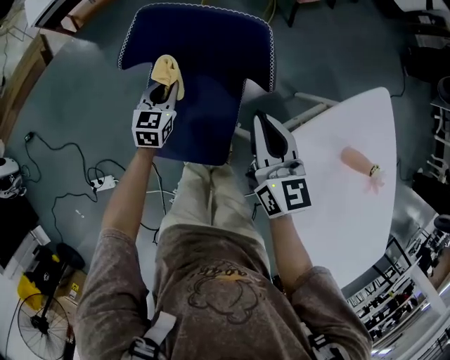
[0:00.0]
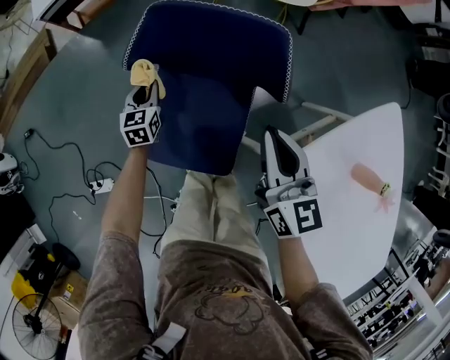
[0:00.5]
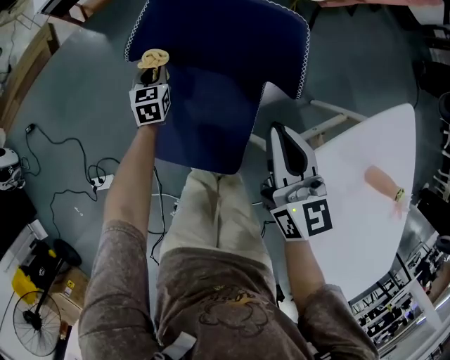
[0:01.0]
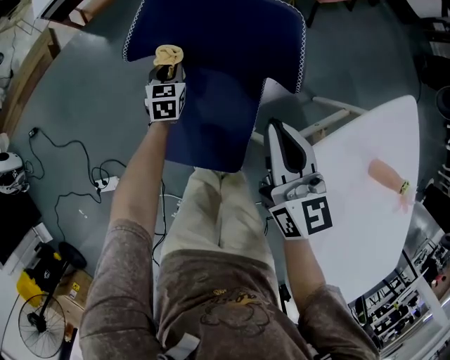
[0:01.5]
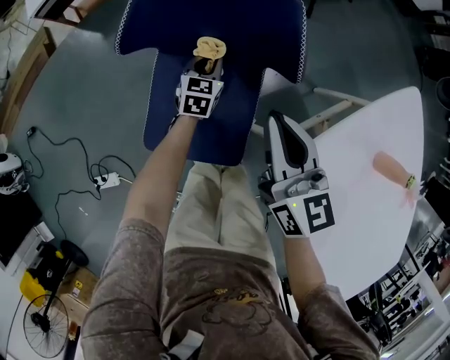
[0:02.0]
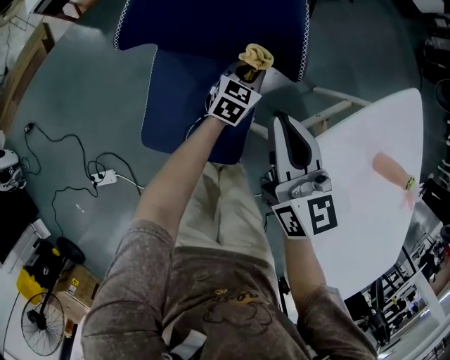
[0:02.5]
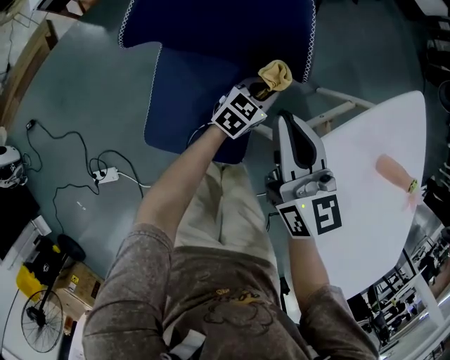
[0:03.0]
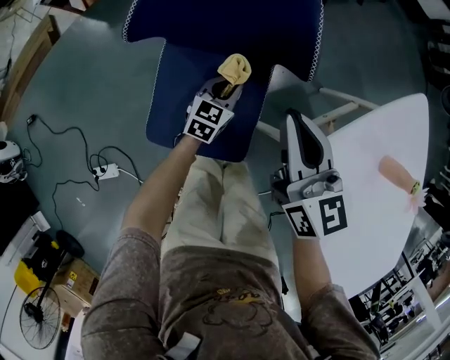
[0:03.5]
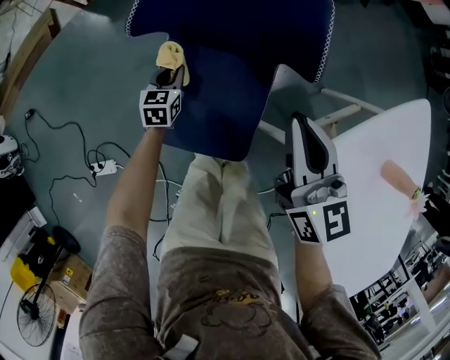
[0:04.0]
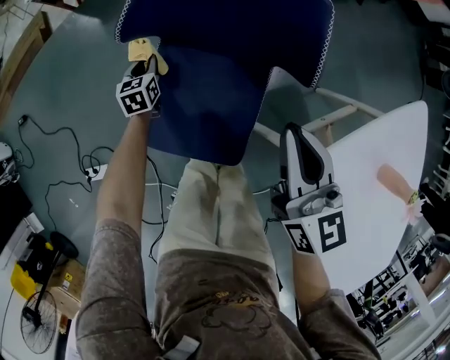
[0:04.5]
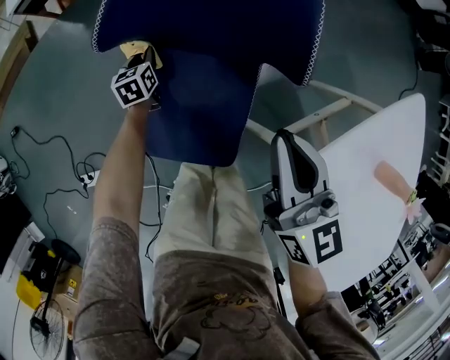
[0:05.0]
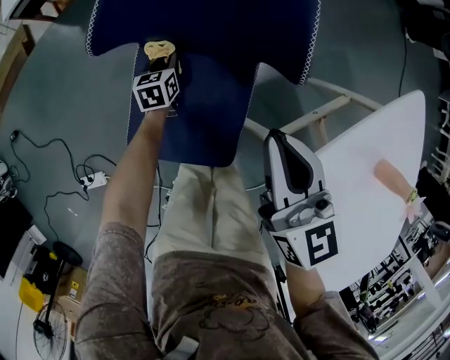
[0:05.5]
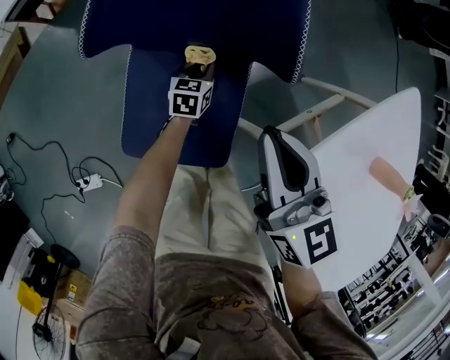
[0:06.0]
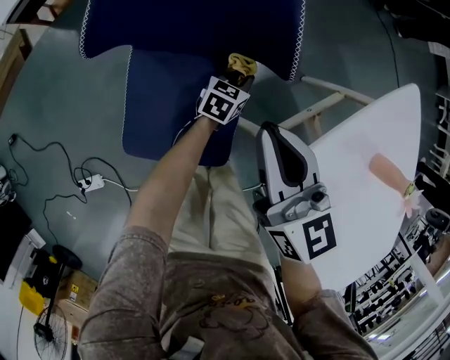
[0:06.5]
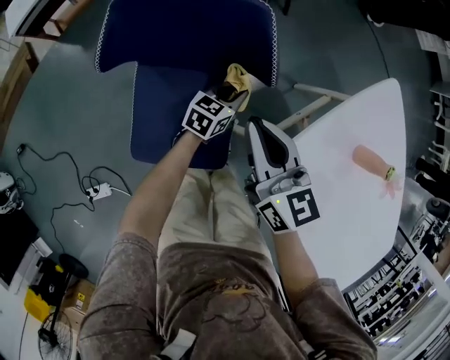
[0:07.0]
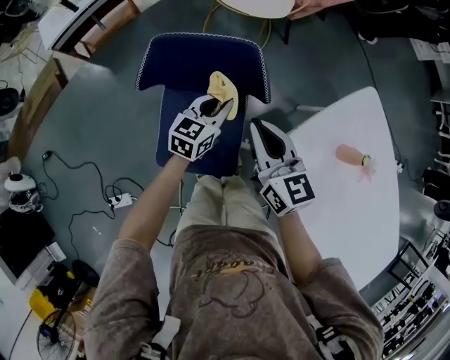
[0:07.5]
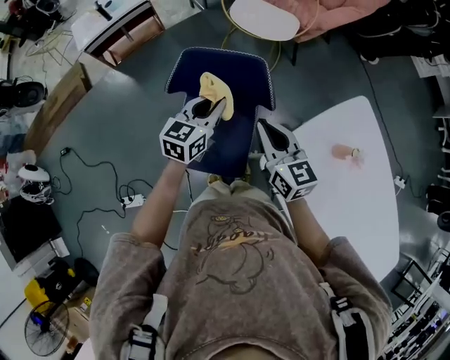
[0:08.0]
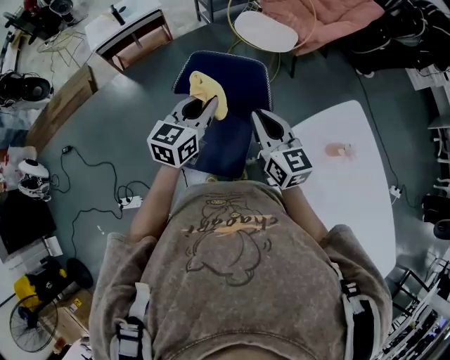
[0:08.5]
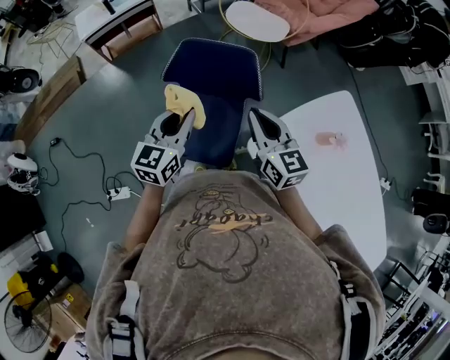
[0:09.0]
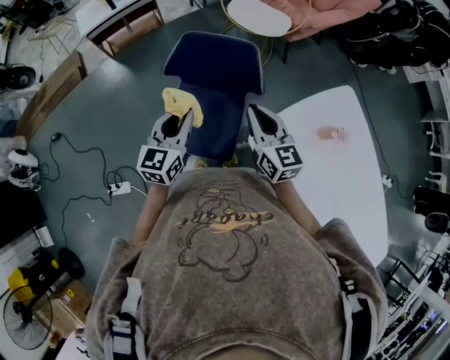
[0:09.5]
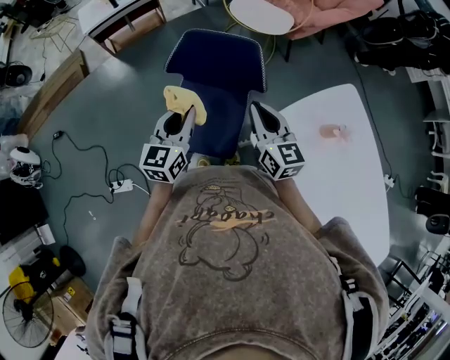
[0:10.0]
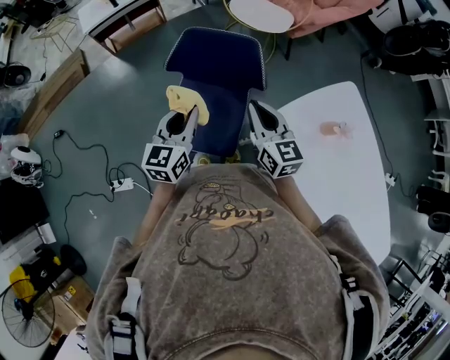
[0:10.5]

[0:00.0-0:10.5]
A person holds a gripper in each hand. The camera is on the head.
0:00.0 to 0:02.0: The left gripper shifts approximately 10 cm downward and to the right.
0:02.0 to 0:04.0: The left gripper moves to the left and backward, roughly 15 cm.
0:04.0 to 0:06.5: The left gripper changes place by some 30 cm, and swivels some 30 degrees.
0:06.5 to 0:08.5: The right gripper shifts roughly 20 cm upward. Meanwhile the left gripper travels upward by roughly 50 cm, and changes its angle by about 30 degrees.
0:08.5 to 0:10.5: The right gripper shifts by some 5 cm. Meanwhile the left gripper goes approximately 10 cm backward.

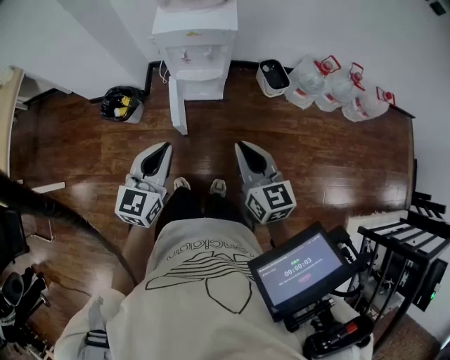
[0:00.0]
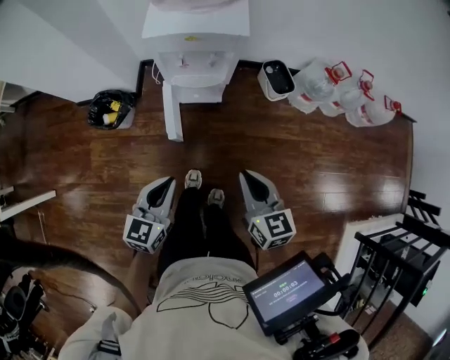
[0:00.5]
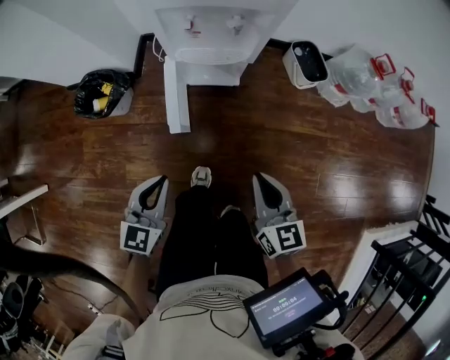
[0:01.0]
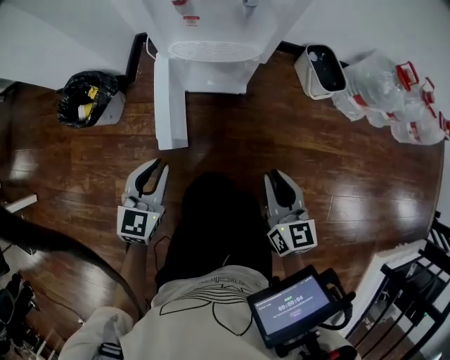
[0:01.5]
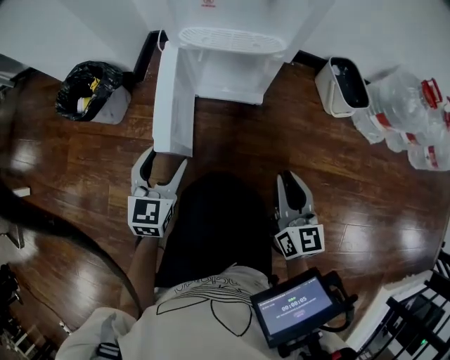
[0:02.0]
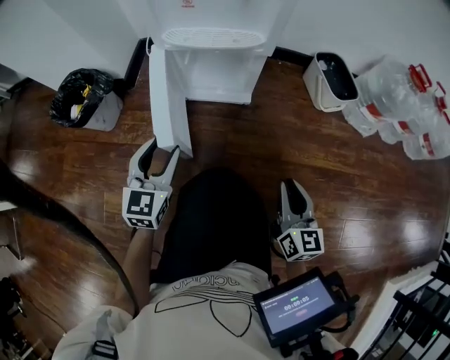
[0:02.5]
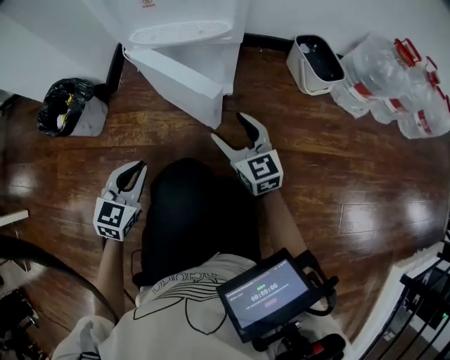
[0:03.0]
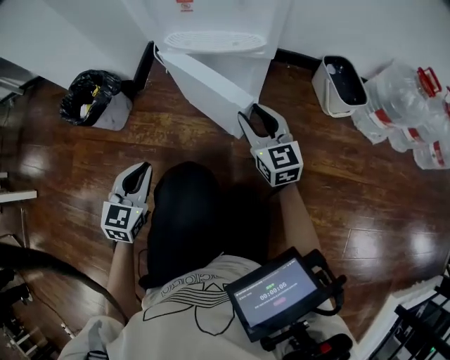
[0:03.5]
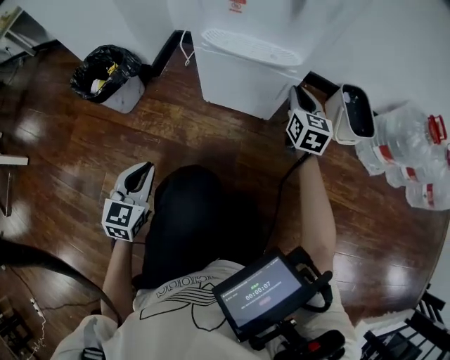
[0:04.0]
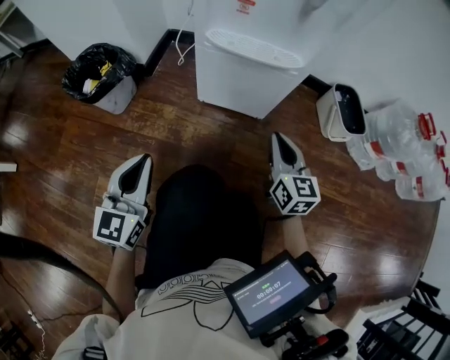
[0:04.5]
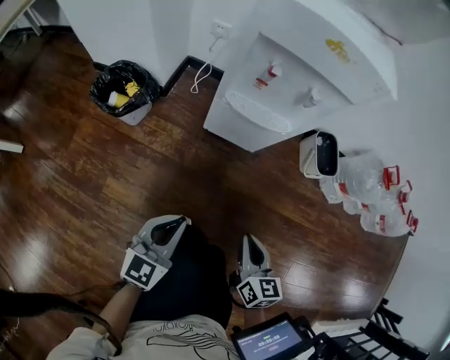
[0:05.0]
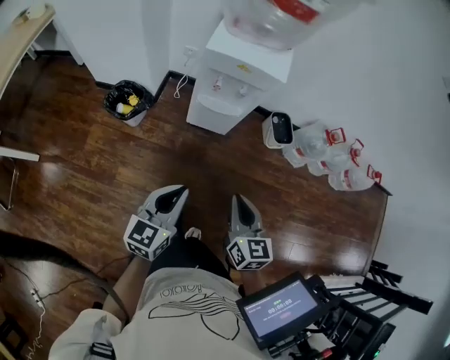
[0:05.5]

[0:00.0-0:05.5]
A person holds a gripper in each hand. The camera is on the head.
0:00.0 to 0:02.0: The grippers both shift downward by approximately 50 cm. The left gripper opens.
0:02.0 to 0:03.5: The right gripper shifts approximately 15 cm forward, rotates roughly 20 degrees, and opens, then closes once more. Meanwhile the left gripper closes up.
0:03.5 to 0:05.5: The left gripper travels upward by approximately 50 cm, and rotates about 30 degrees, while the right gripper shifts approximately 60 cm upward and backward, and closes its fingers.

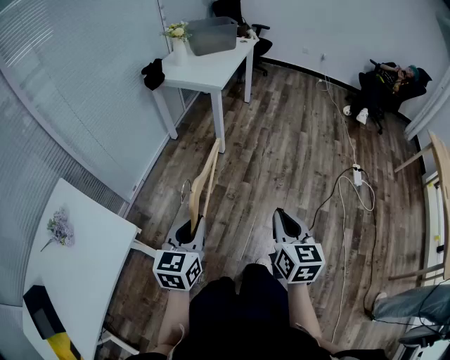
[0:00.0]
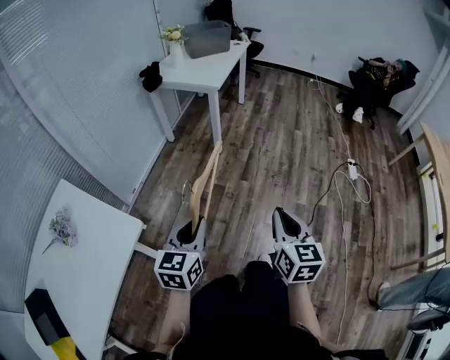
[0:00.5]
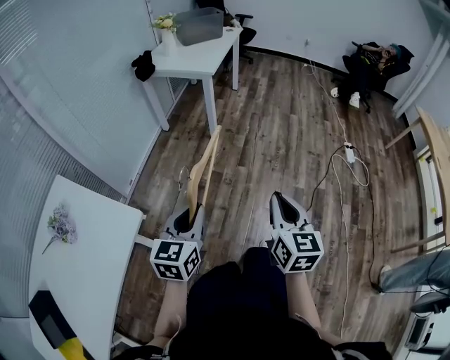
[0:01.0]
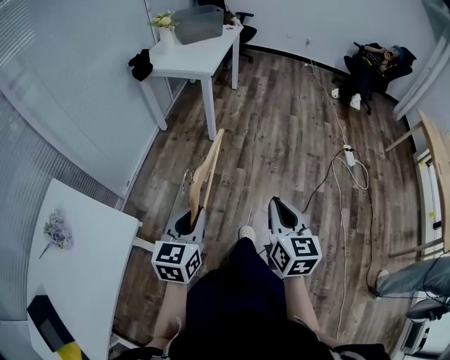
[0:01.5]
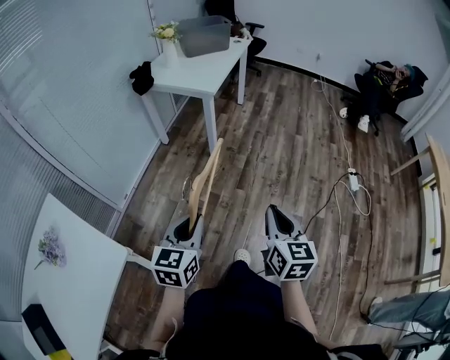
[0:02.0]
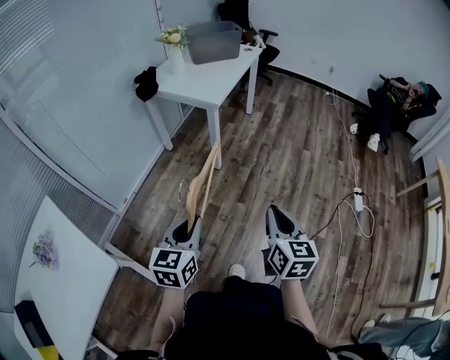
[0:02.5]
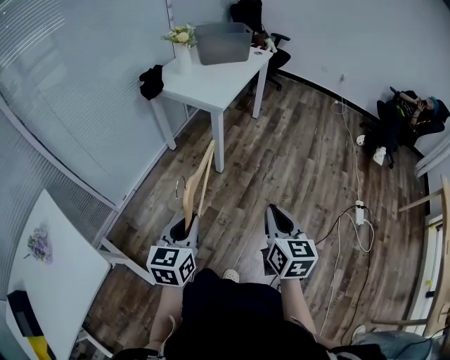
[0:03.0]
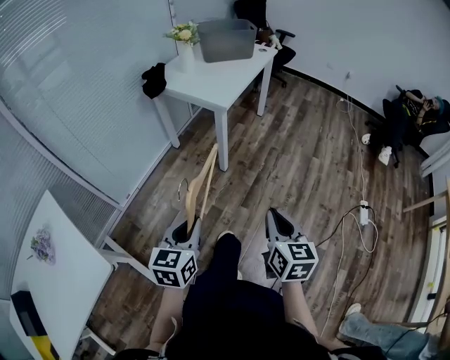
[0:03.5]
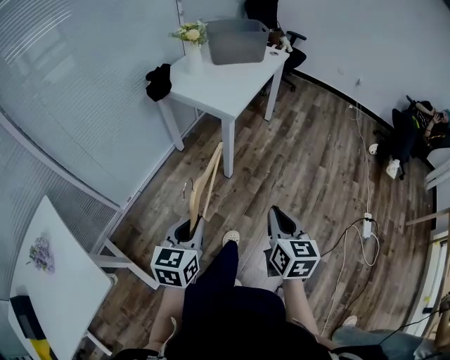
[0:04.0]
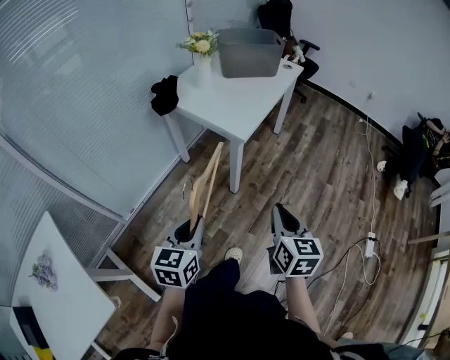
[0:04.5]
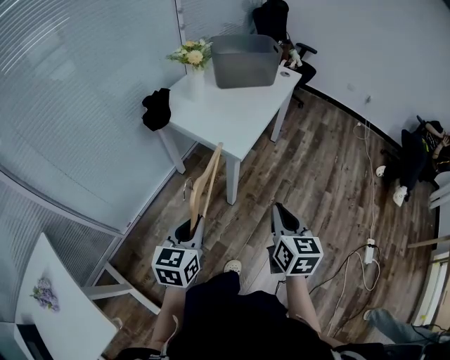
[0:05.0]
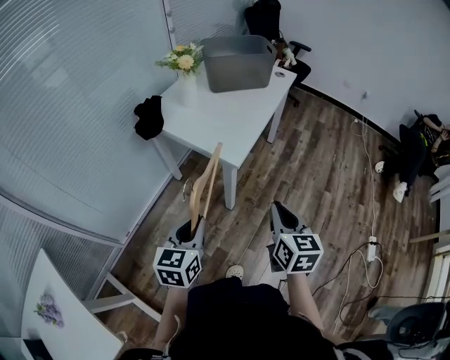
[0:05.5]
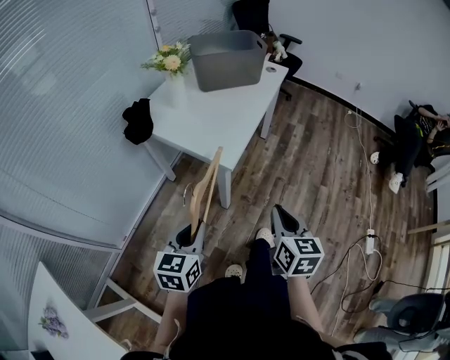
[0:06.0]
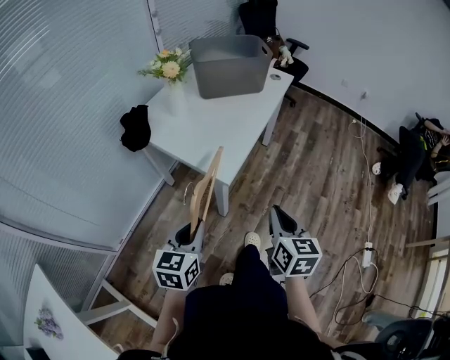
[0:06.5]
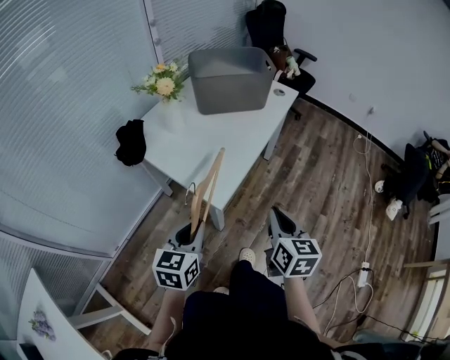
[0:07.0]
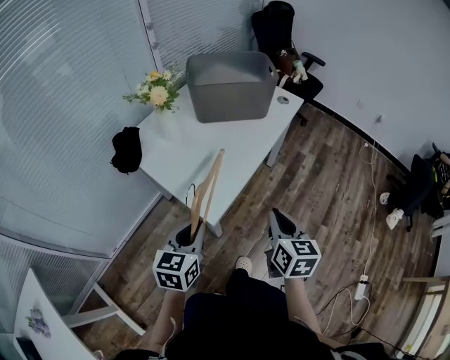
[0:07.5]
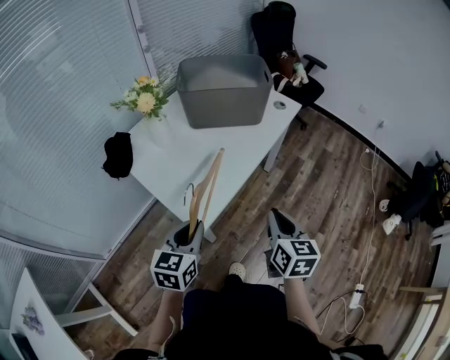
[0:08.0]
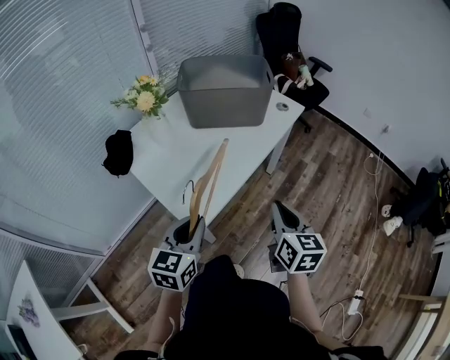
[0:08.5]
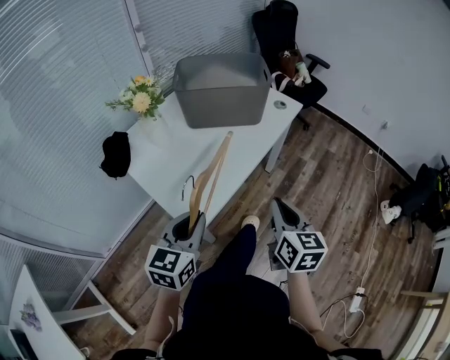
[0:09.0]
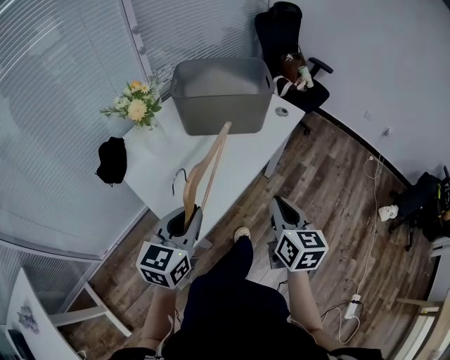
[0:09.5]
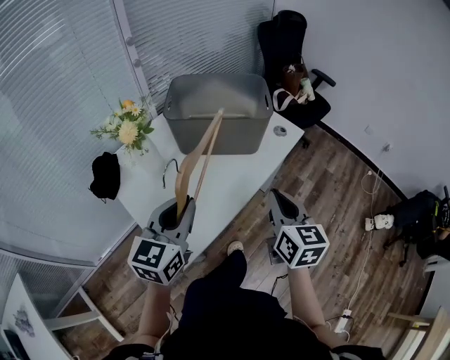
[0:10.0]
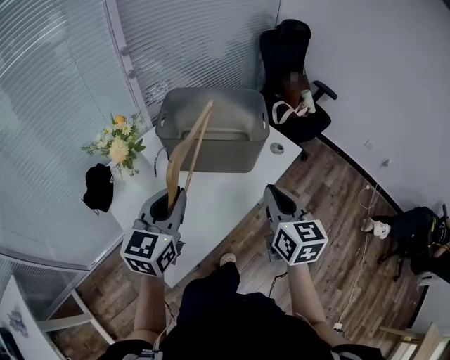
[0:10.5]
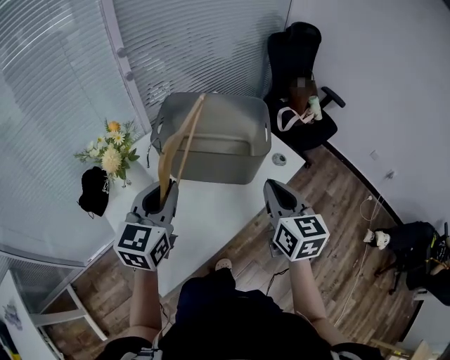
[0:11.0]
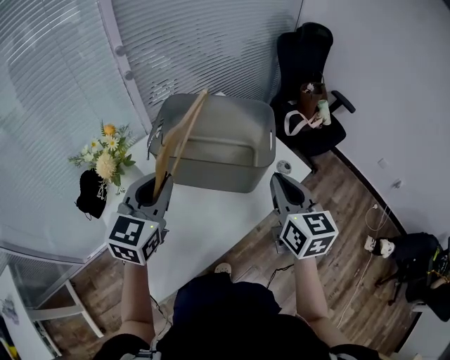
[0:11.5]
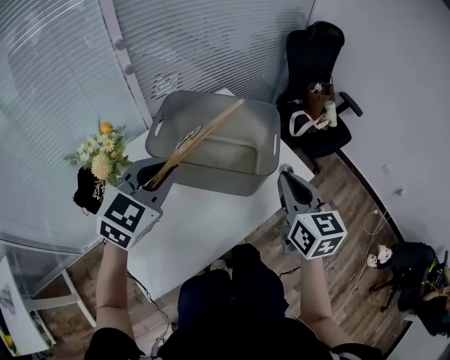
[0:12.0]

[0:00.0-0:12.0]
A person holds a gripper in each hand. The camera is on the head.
0:00.0 to 0:02.0: Both grippers move forward, some 10 cm.
0:02.0 to 0:04.0: Both grippers move forward, roughly 20 cm.
0:04.0 to 0:06.0: The two grippers go roughly 25 cm forward.
0:06.0 to 0:08.0: The left gripper moves forward and to the right, approximately 25 cm; the right gripper travels forward by about 25 cm.
0:08.0 to 0:10.0: The two grippers go approximately 20 cm forward and upward.
0:10.0 to 0:12.0: The grippers both shift forward by some 25 cm. The left gripper swivels roughly 30 degrees.
